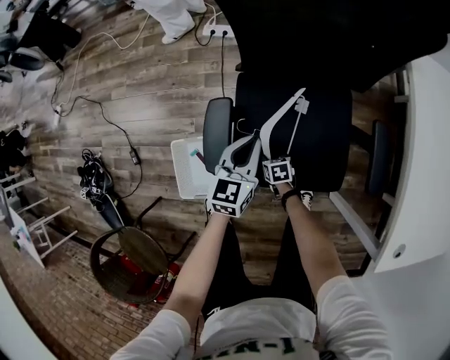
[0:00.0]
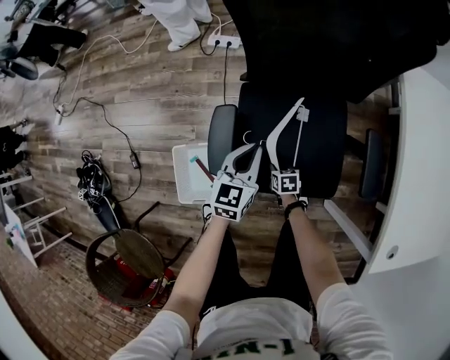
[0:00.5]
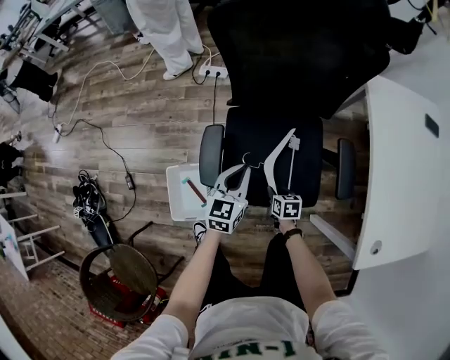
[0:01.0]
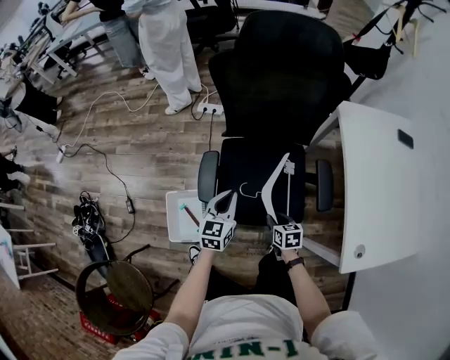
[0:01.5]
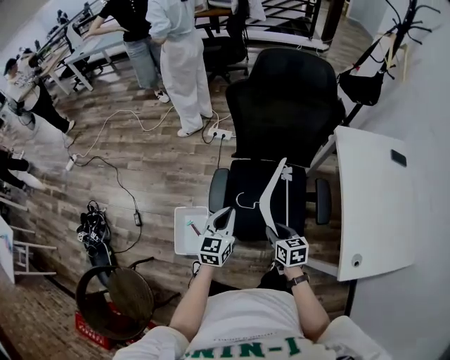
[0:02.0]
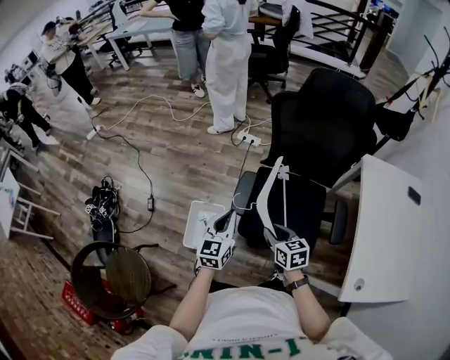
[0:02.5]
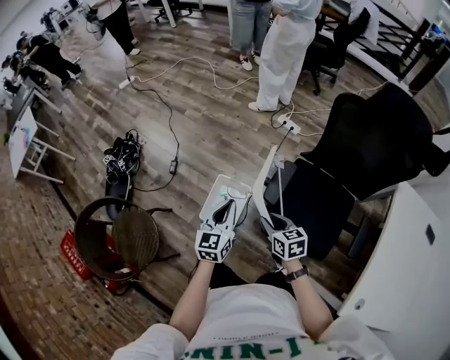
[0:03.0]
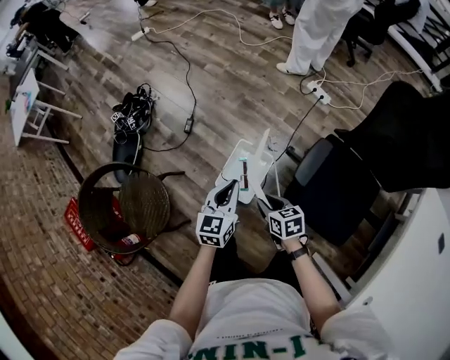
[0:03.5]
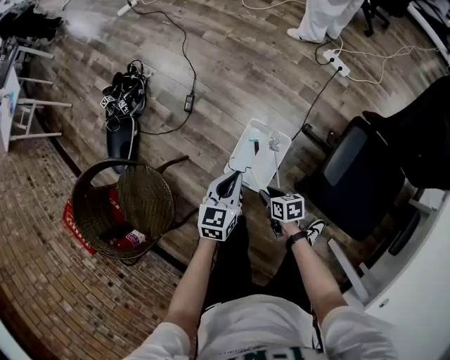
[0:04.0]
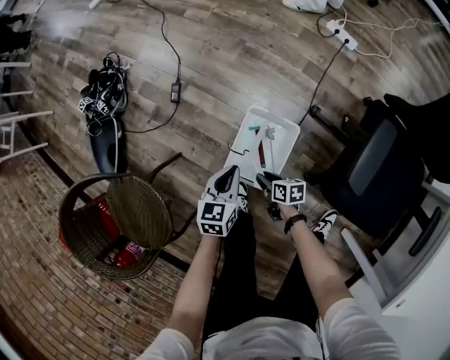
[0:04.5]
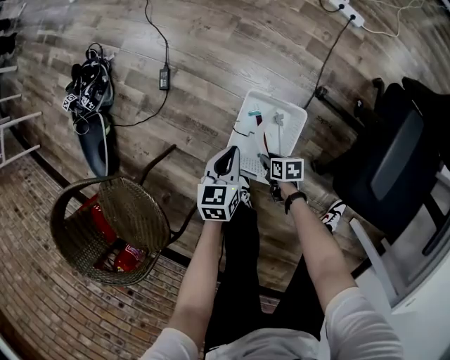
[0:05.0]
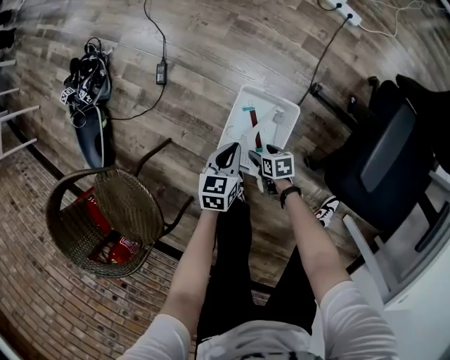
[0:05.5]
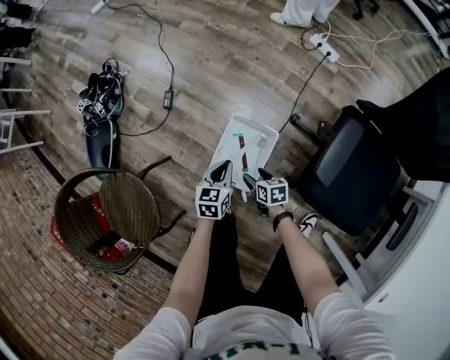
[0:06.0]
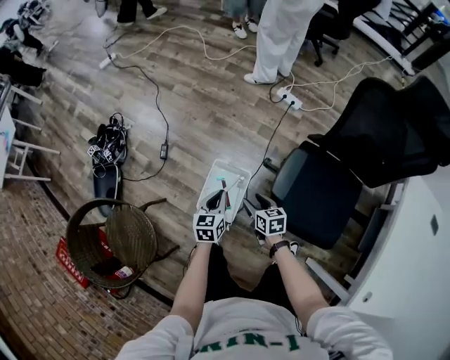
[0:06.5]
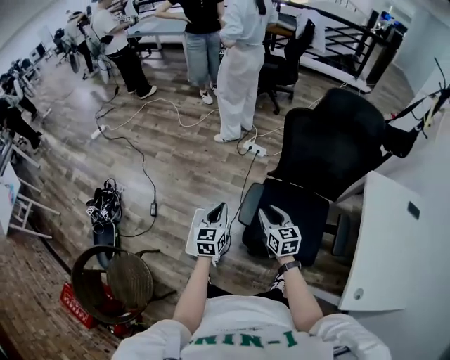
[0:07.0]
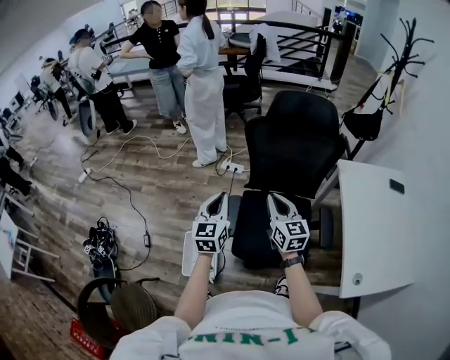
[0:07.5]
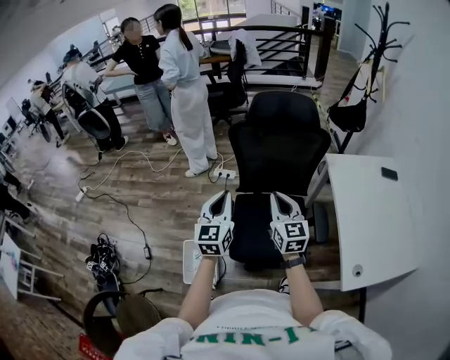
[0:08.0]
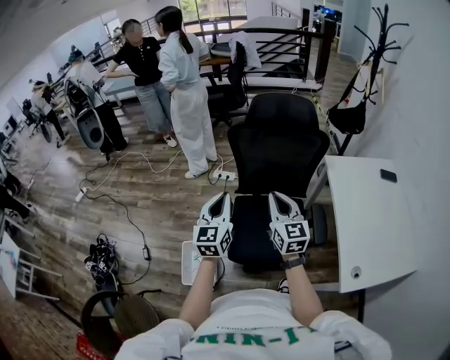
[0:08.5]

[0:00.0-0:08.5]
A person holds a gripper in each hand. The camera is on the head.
0:00.0 to 0:02.0: The left gripper shifts roughly 25 cm upward and backward. The right gripper travels upward by roughly 40 cm, and turns by roughly 20 degrees.
0:02.0 to 0:04.0: The two grippers travel together, approximately 40 cm. The left gripper rotates about 30 degrees, while the right gripper turns by some 50 degrees.
0:04.0 to 0:06.5: The two grippers go some 10 cm to the right. The right gripper moves approximately 30 cm downward and comes back, and rotates roughly 20 degrees. Meanwhile the left gripper moves approximately 30 cm downward and comes back.
0:06.5 to 0:08.5: Both grippers travel together upward, about 40 cm. The left gripper angles its fingers upward, by approximately 30 degrees, while the right gripper tips its fingers upward by some 40 degrees, and closes its fingers.

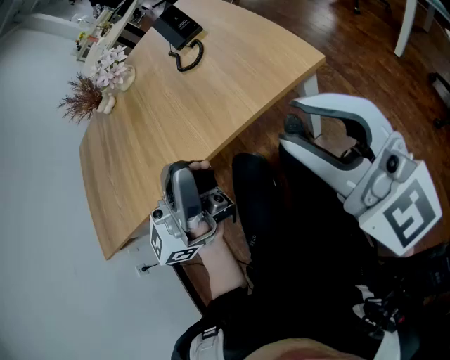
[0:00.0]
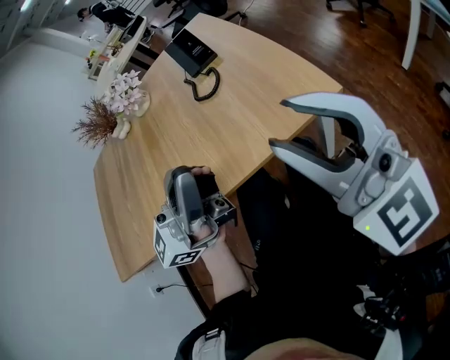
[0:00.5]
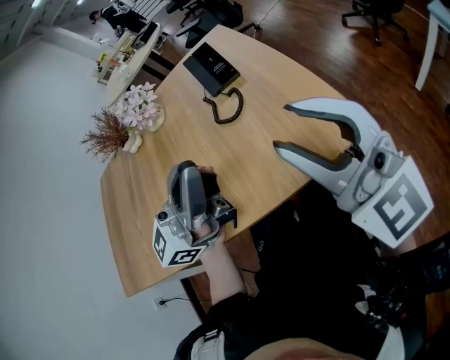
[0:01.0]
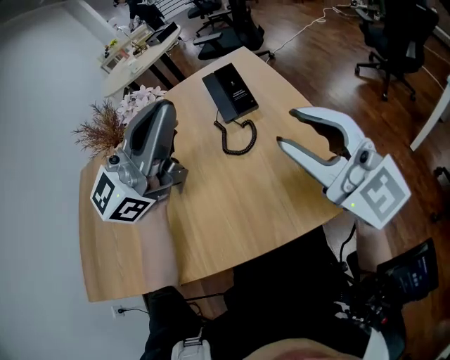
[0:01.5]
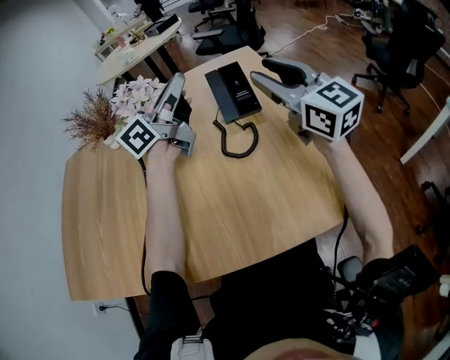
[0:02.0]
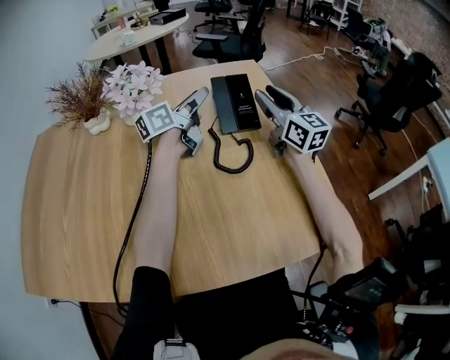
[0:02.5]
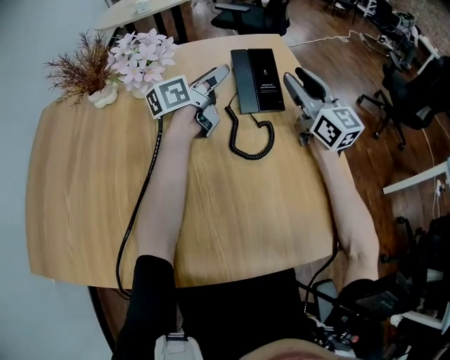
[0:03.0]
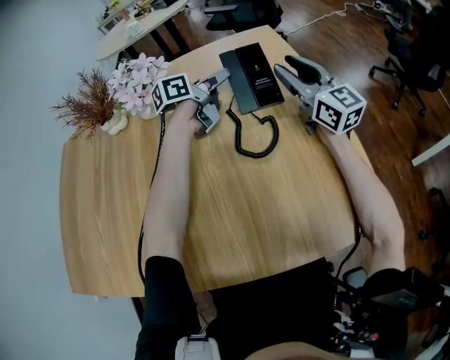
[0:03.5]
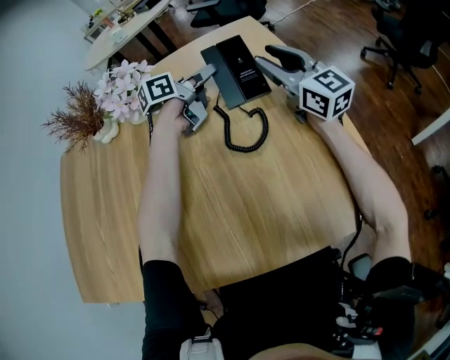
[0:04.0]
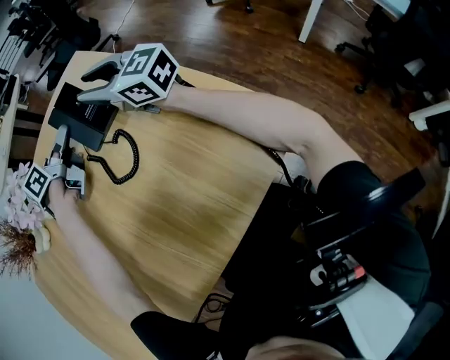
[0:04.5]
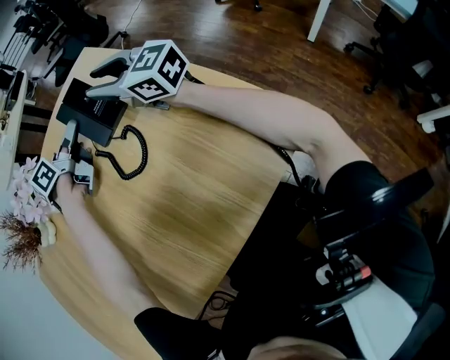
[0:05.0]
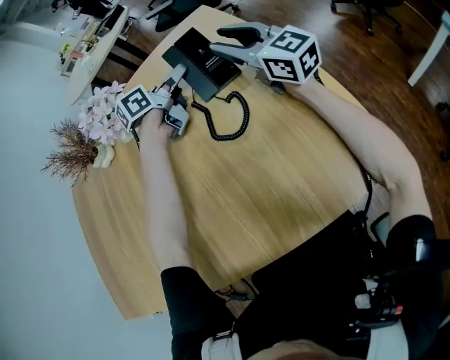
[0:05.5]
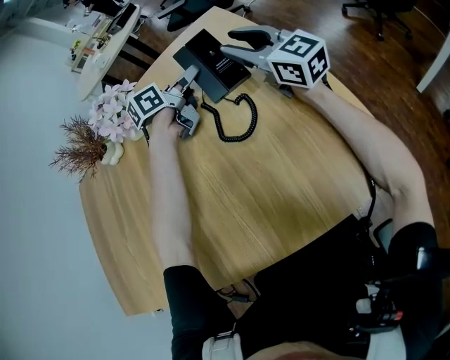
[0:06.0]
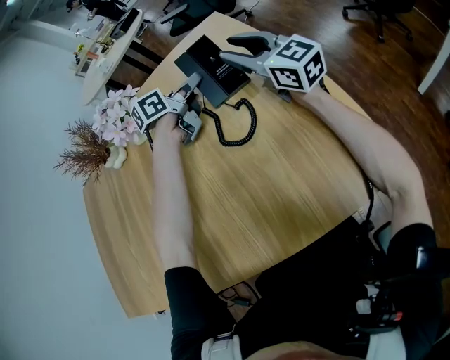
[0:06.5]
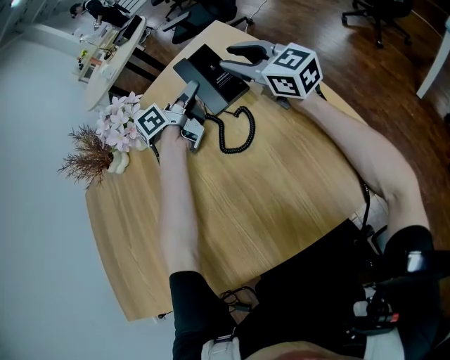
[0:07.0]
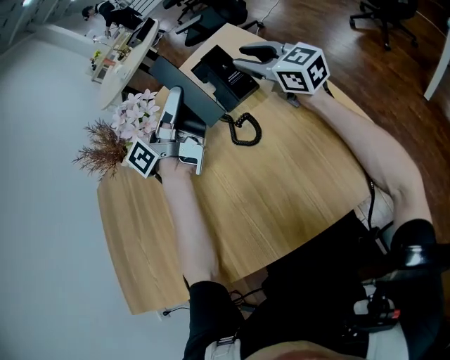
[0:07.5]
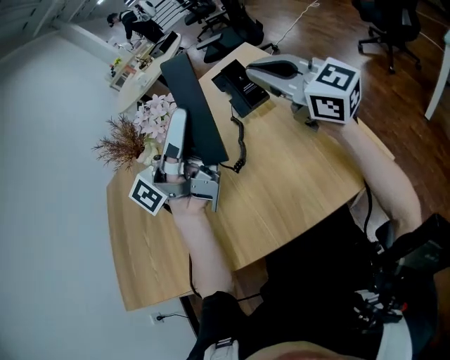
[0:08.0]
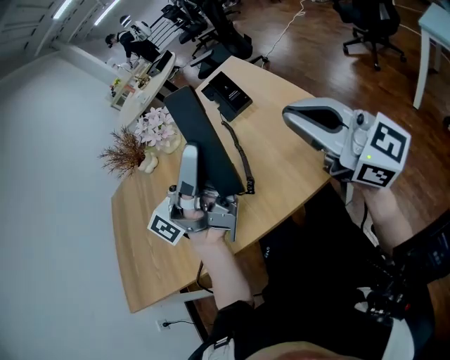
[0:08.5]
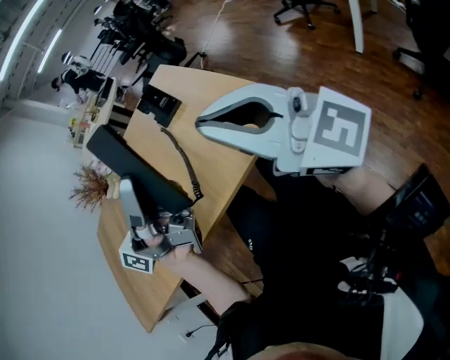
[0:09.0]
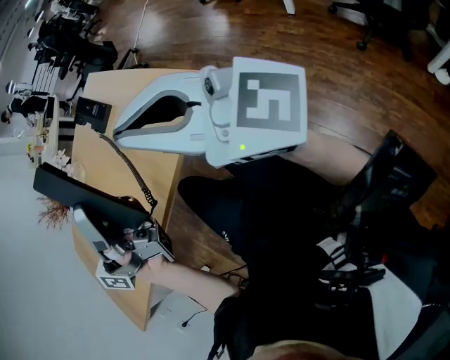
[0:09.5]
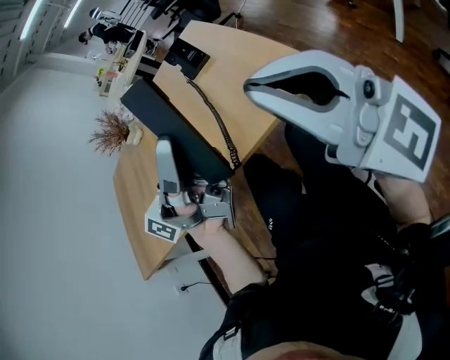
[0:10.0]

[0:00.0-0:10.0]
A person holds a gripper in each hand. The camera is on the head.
0:00.0 to 0:02.0: The pair of grippers is taken forward, some 50 cm. The left gripper changes its angle by about 20 degrees.
0:02.0 to 0:04.0: The left gripper shifts some 25 cm downward and forward, angles its fingers downward, by roughly 30 degrees, and opens; the right gripper travels downward and forward by some 15 cm.
0:04.0 to 0:06.0: The grippers move only a little.
0:06.0 to 0:08.0: The right gripper moves backward and upward, approximately 20 cm, and closes. The left gripper travels backward and upward by some 40 cm, tilts its fingers roughly 50 degrees upward, and closes its fingers.
0:08.0 to 0:10.0: Both grippers travel together backward and to the right, about 30 cm.

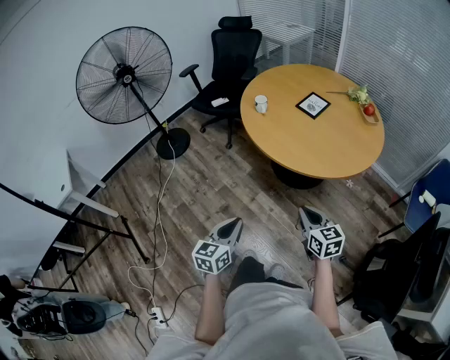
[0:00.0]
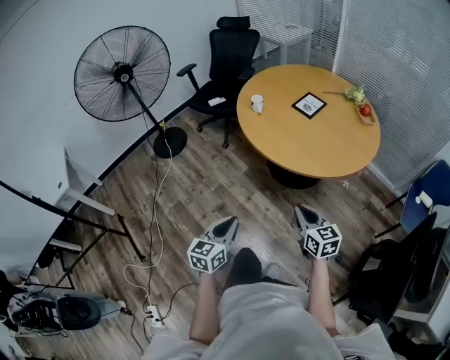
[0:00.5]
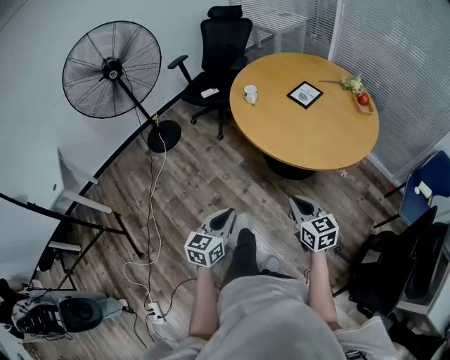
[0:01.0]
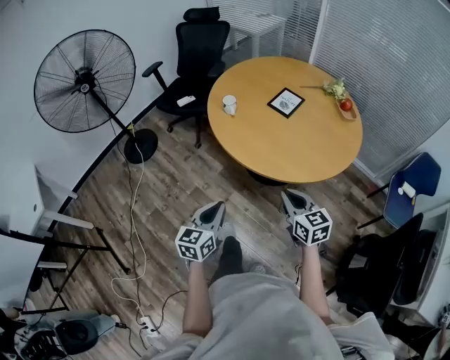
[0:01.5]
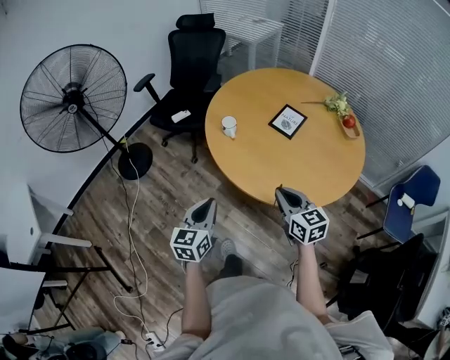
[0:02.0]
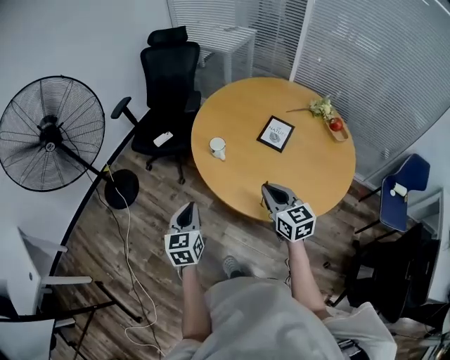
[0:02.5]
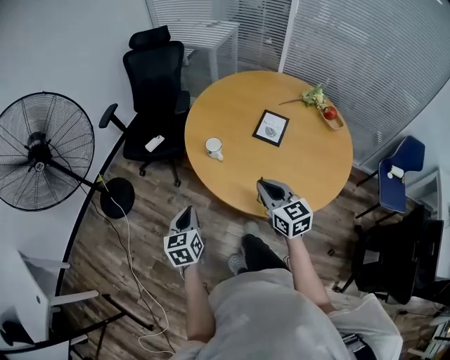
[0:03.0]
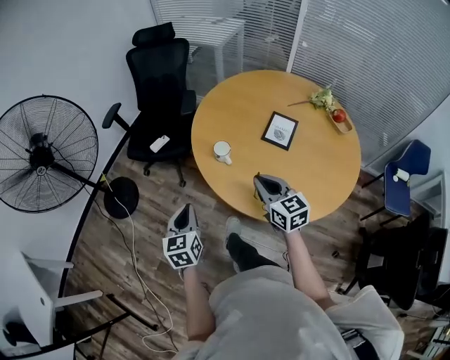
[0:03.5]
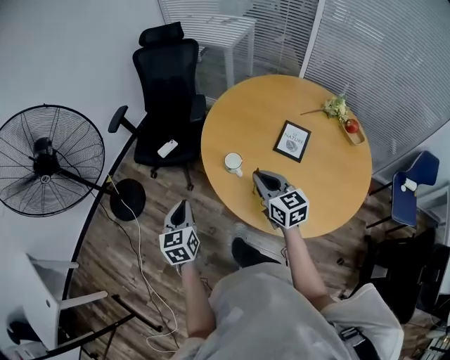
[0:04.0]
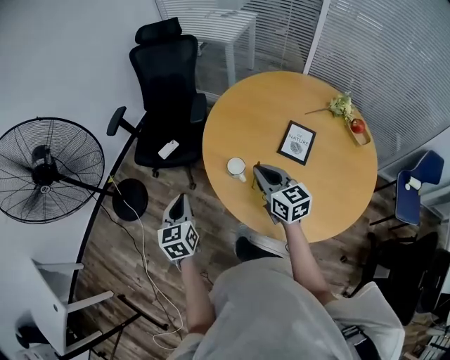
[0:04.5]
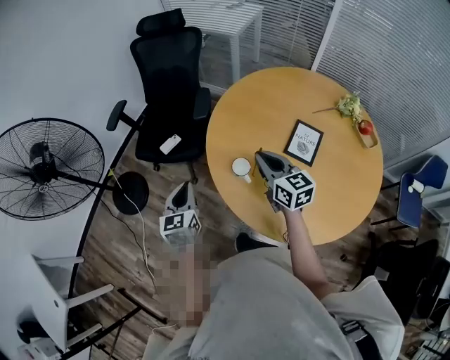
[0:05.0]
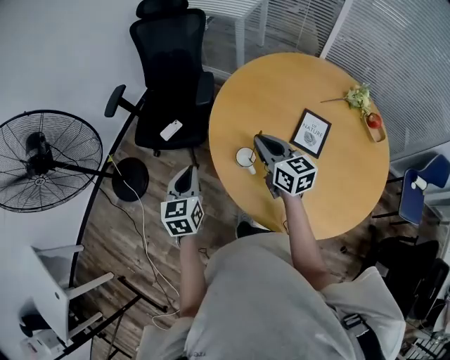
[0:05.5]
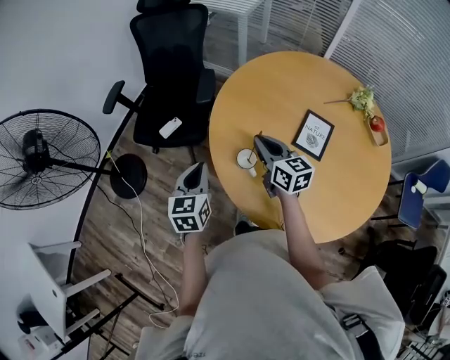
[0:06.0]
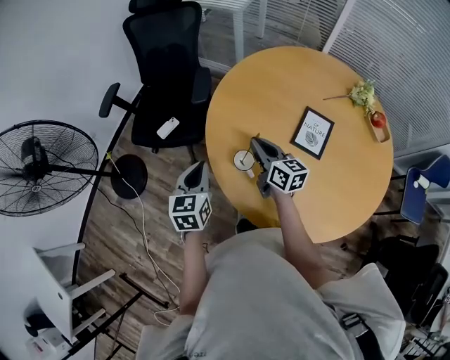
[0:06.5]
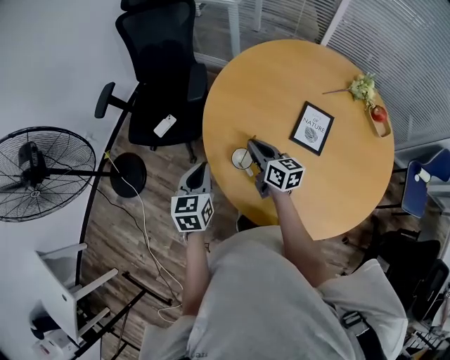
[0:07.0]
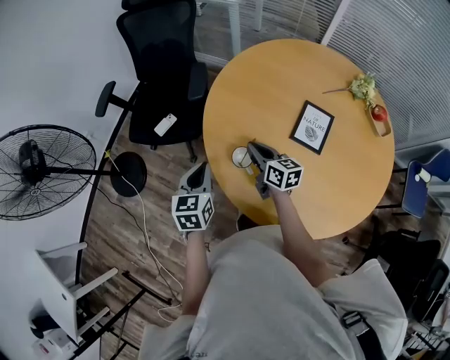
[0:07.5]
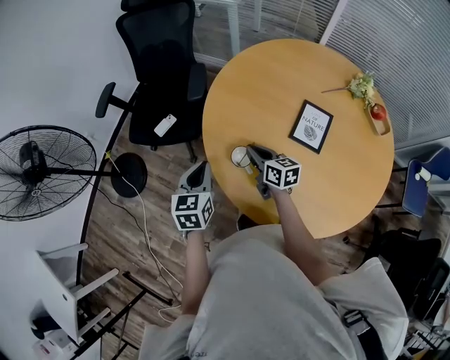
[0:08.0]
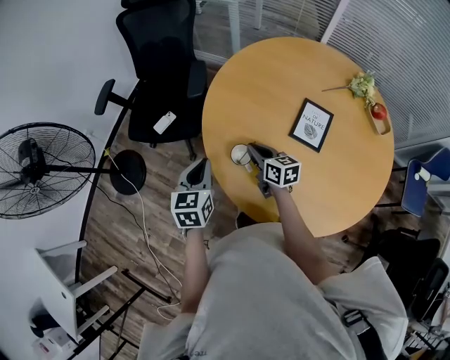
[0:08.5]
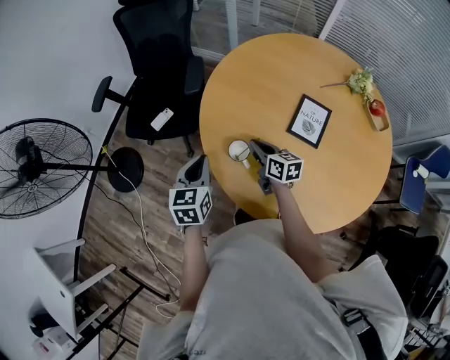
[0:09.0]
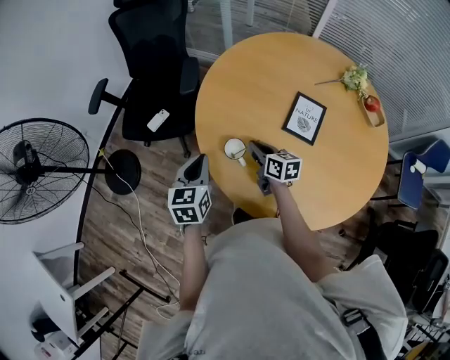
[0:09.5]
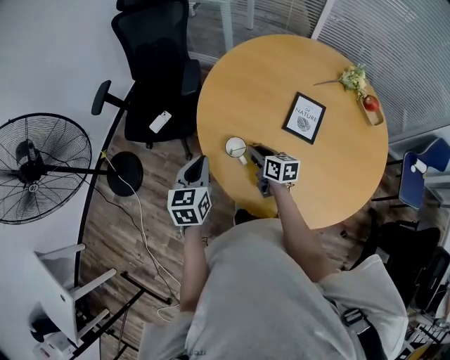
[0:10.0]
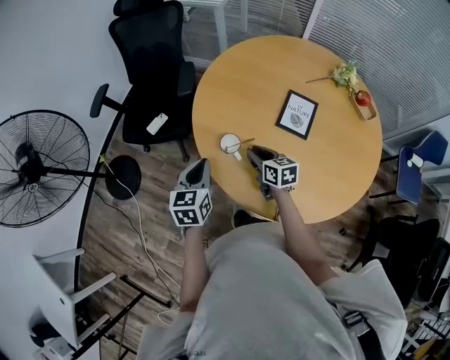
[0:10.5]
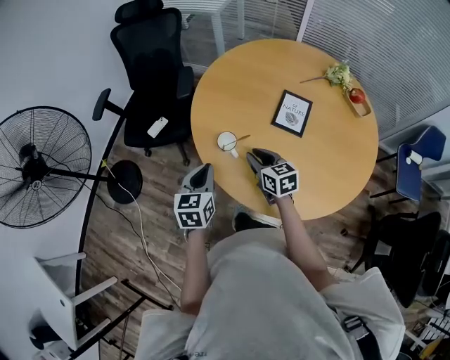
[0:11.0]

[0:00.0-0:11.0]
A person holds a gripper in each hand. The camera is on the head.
0:00.0 to 0:02.0: Both grippers move forward, some 25 cm.
0:02.0 to 0:03.5: The two grippers go some 20 cm forward and to the left.
0:03.5 to 0:05.5: Both grippers move forward, roughly 25 cm.
0:05.5 to 0:07.5: The left gripper heads to the right, covering approximately 5 cm. Meanwhile the right gripper heads downward, covering roughly 15 cm.
0:07.5 to 0:09.0: There are only small adjustments of the grippers.
0:09.0 to 0:11.0: The left gripper is displaced backward by some 10 cm. Meanwhile the right gripper goes approximately 10 cm backward and upward.
